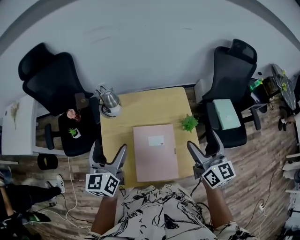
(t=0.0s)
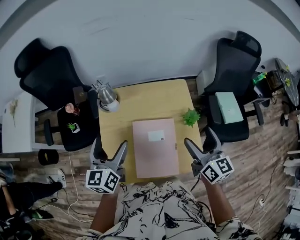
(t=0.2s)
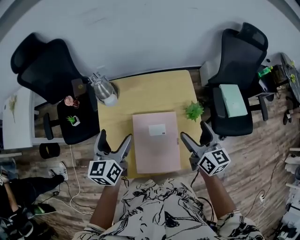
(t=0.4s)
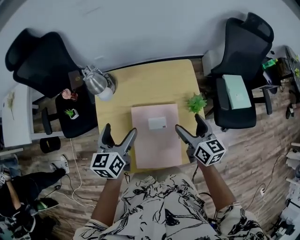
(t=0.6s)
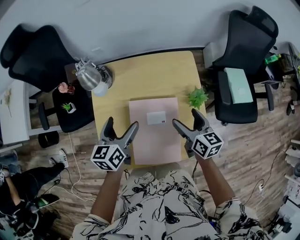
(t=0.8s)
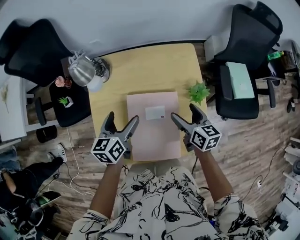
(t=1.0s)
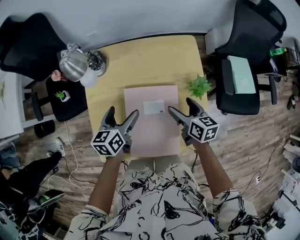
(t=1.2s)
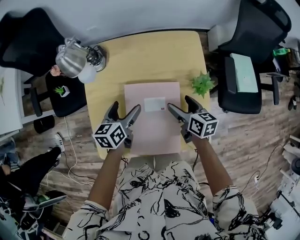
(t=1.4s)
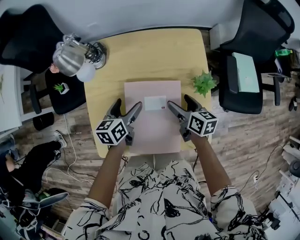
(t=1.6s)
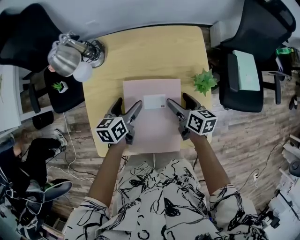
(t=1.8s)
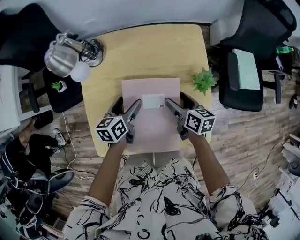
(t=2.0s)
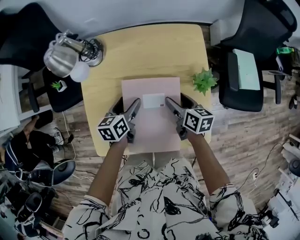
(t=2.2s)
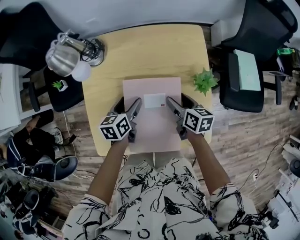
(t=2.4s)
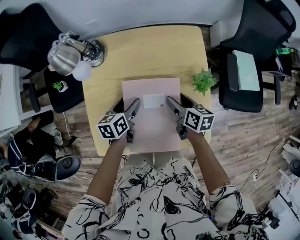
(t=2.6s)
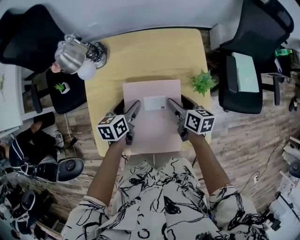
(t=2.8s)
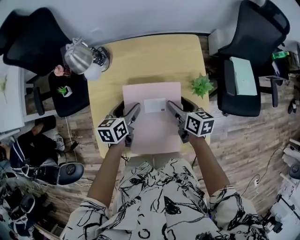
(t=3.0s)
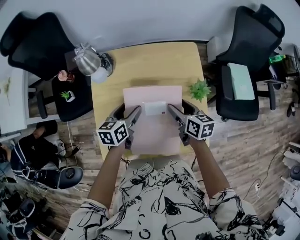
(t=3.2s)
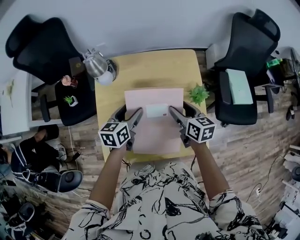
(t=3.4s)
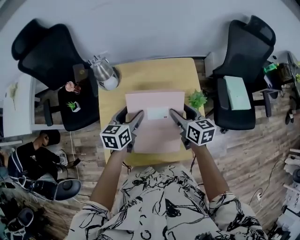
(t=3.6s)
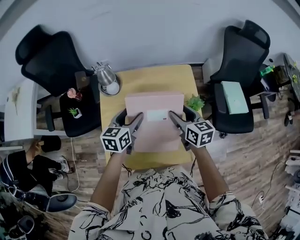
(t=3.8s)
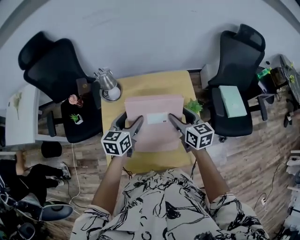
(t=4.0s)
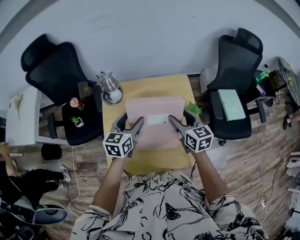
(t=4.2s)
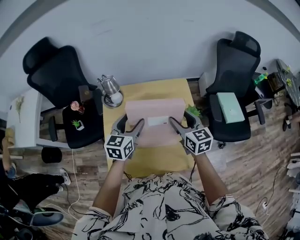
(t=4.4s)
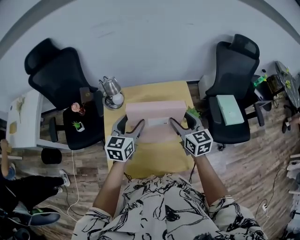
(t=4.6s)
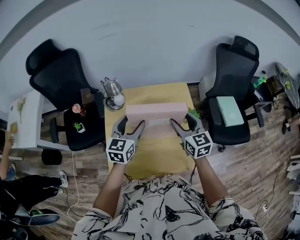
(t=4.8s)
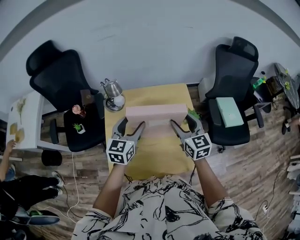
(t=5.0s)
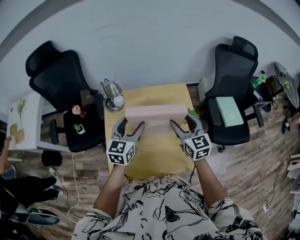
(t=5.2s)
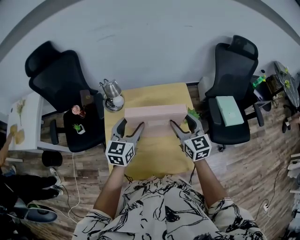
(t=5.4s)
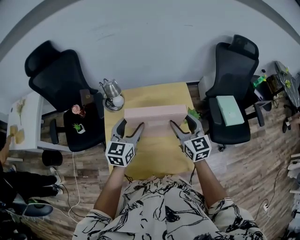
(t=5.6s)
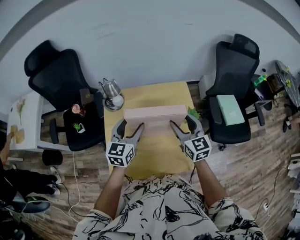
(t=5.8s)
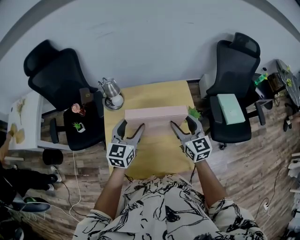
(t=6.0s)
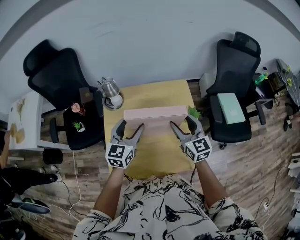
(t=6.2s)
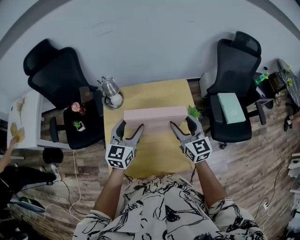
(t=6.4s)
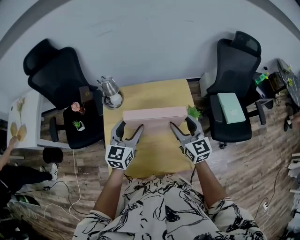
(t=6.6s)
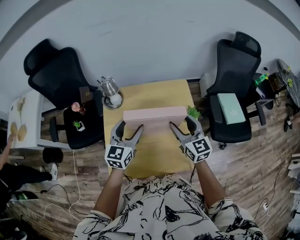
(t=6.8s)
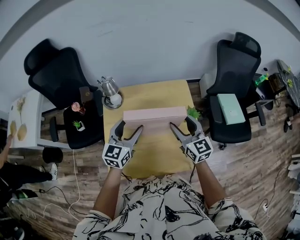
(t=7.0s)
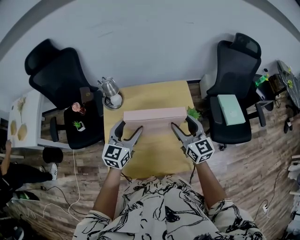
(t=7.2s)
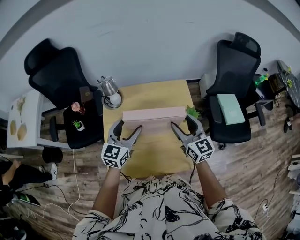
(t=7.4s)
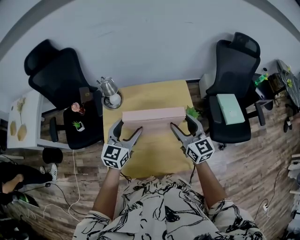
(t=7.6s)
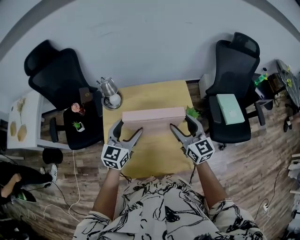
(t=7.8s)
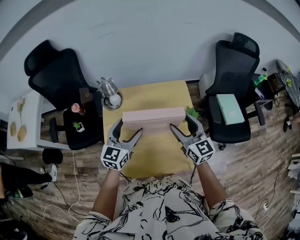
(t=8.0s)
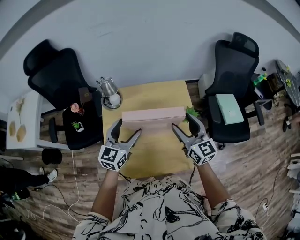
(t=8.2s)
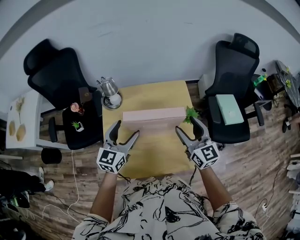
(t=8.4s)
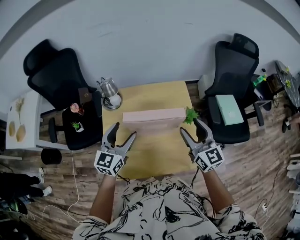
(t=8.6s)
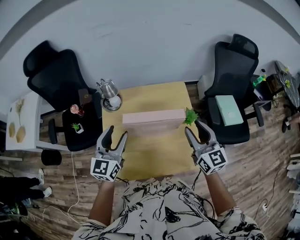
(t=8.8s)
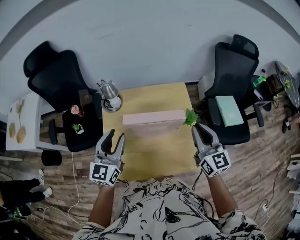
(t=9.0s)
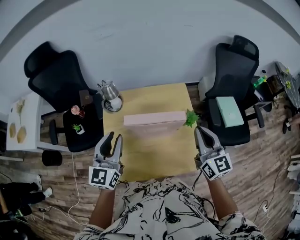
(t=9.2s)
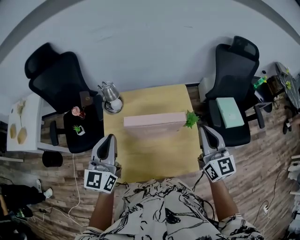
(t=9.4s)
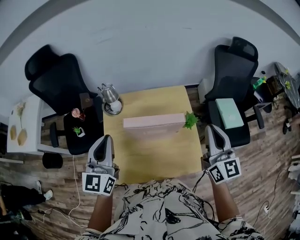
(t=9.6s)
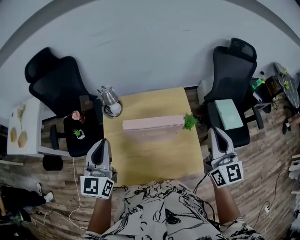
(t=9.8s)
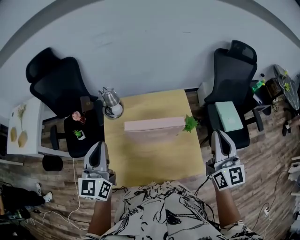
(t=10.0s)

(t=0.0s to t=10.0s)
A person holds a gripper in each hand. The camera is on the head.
t=0.0s - t=1.4s: Both grippers travel together downward, some 30 cm. The left gripper swivels approximately 30 degrees. Meanwhile the right gripper turns by roughly 40 degrees.
t=1.4s - t=2.8s: The right gripper closes.
t=2.8s - t=4.2s: The grippers both shift upward by some 20 cm. The right gripper turns by some 30 degrees; the left gripper turns by about 30 degrees.
t=4.2s - t=7.2s: There are only small adjustments of the grippers.
t=7.2s - t=8.6s: The right gripper ends up approximately 5 cm from where it was.
t=8.6s - t=10.0s: The right gripper travels upward and to the right by approximately 15 cm, and closes up; the left gripper moves upward and to the left, some 15 cm, and closes its fingers.

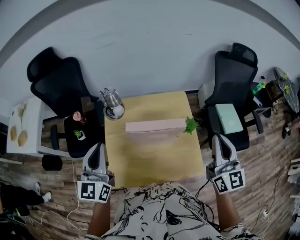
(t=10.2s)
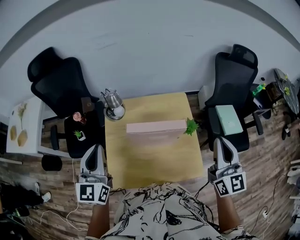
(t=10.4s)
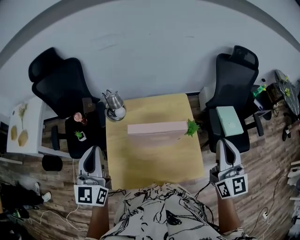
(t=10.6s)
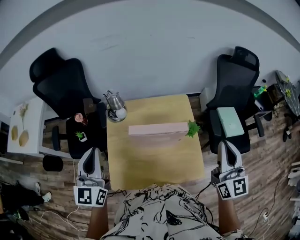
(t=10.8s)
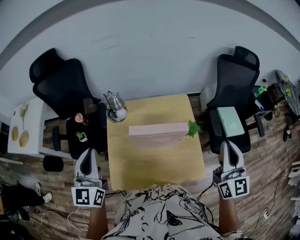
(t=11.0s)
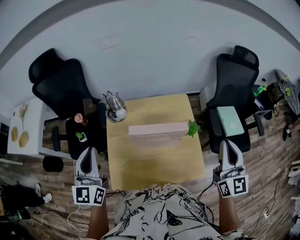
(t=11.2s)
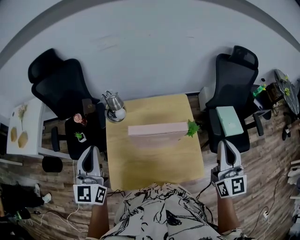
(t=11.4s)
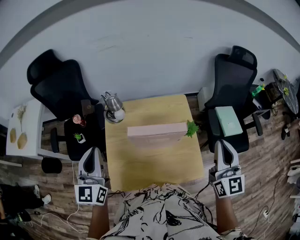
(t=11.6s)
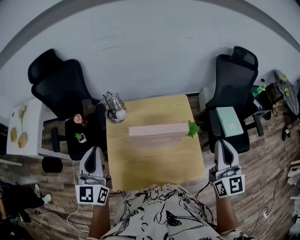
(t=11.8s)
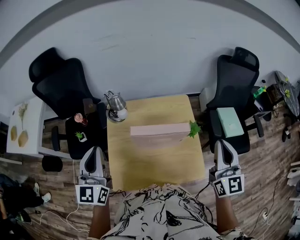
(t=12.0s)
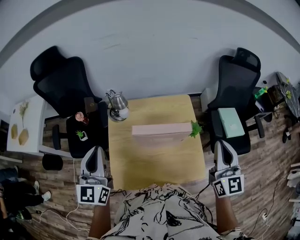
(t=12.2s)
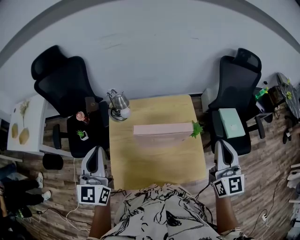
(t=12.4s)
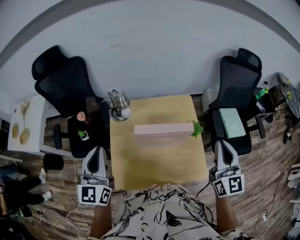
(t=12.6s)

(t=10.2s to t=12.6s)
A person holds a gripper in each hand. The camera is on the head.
t=10.2s - t=12.6s: The grippers stay close to where they were, moving slightly.

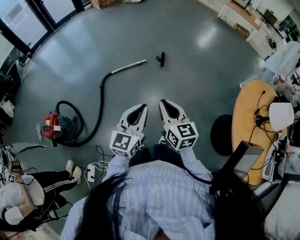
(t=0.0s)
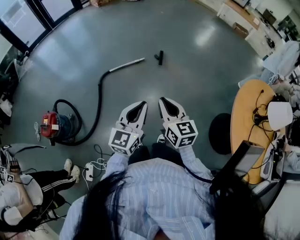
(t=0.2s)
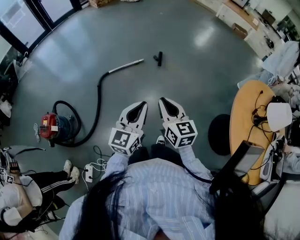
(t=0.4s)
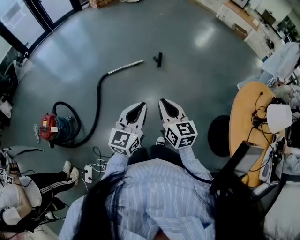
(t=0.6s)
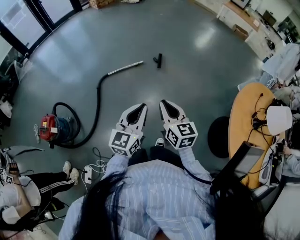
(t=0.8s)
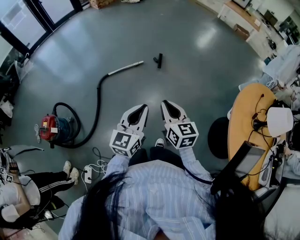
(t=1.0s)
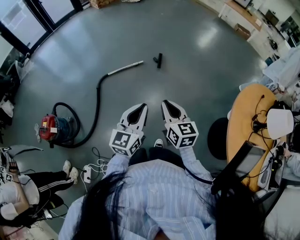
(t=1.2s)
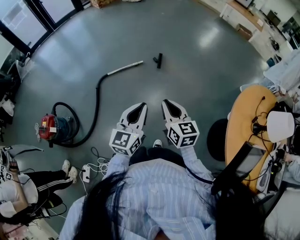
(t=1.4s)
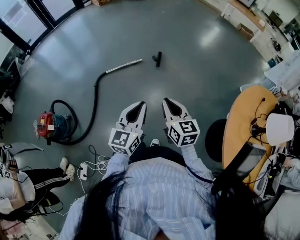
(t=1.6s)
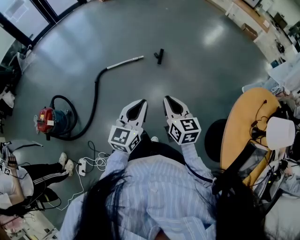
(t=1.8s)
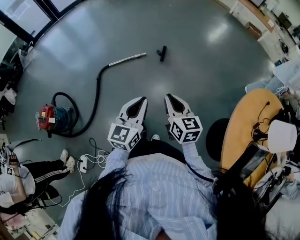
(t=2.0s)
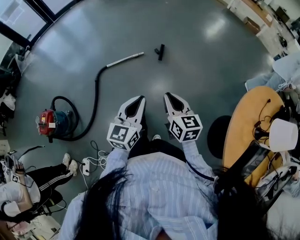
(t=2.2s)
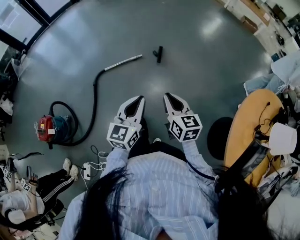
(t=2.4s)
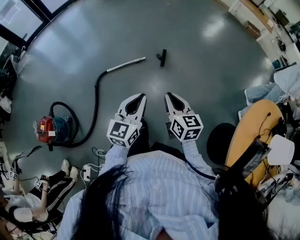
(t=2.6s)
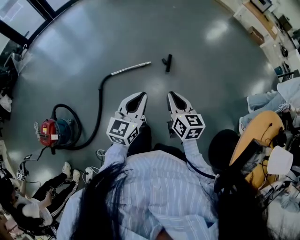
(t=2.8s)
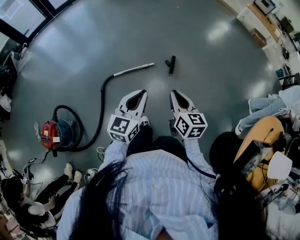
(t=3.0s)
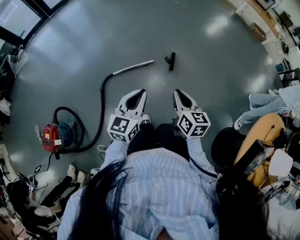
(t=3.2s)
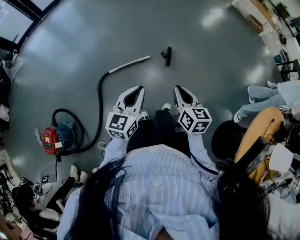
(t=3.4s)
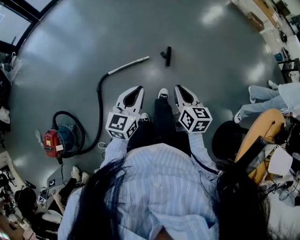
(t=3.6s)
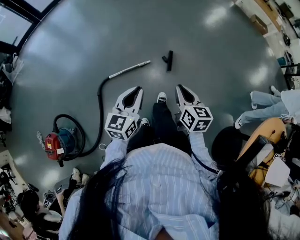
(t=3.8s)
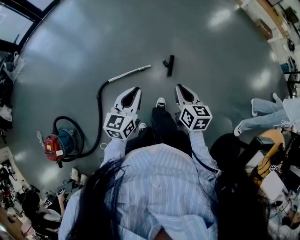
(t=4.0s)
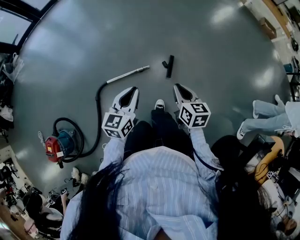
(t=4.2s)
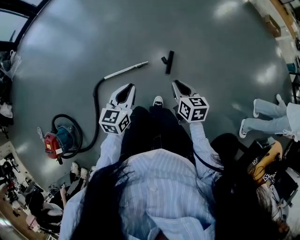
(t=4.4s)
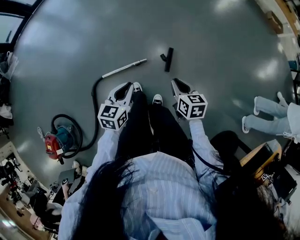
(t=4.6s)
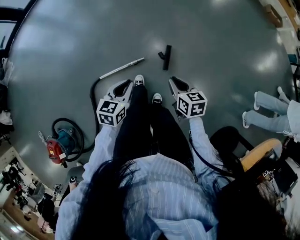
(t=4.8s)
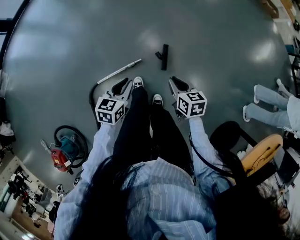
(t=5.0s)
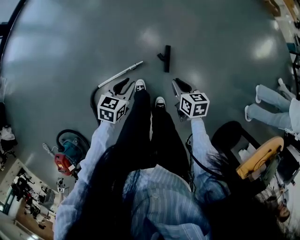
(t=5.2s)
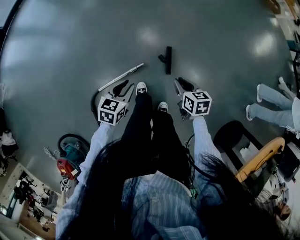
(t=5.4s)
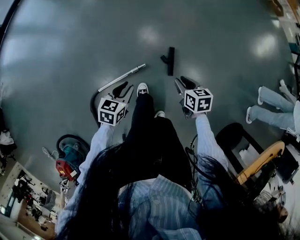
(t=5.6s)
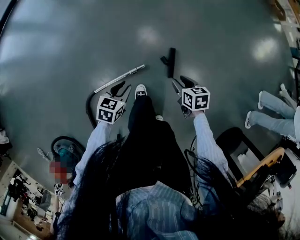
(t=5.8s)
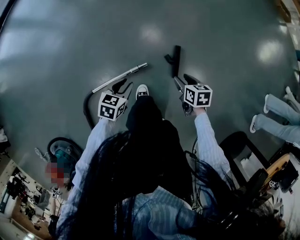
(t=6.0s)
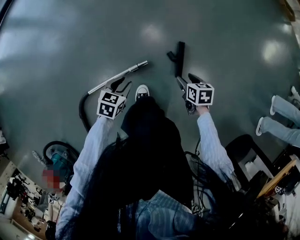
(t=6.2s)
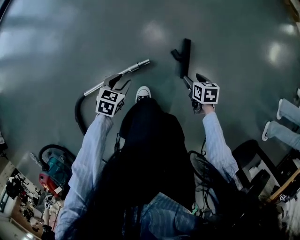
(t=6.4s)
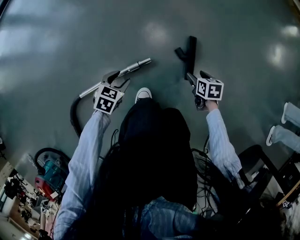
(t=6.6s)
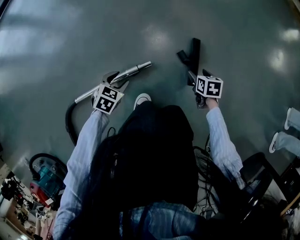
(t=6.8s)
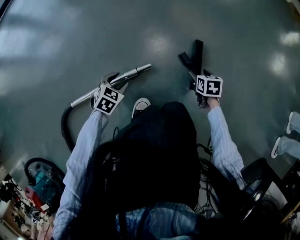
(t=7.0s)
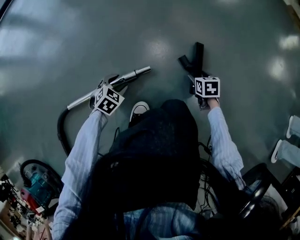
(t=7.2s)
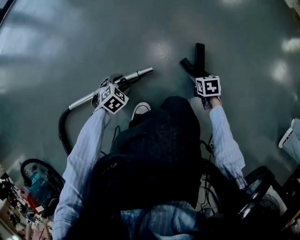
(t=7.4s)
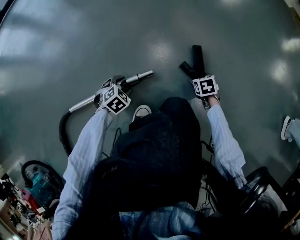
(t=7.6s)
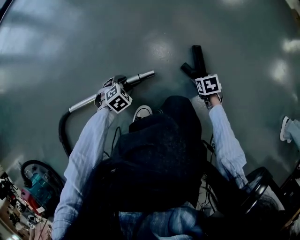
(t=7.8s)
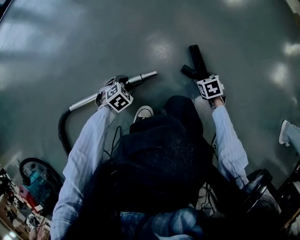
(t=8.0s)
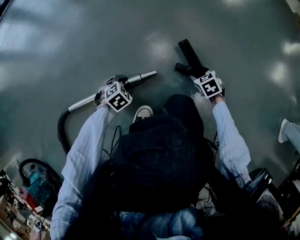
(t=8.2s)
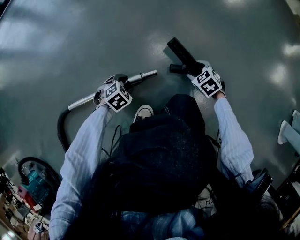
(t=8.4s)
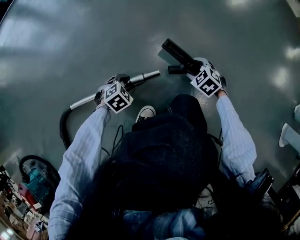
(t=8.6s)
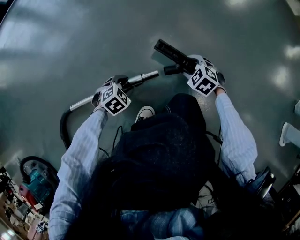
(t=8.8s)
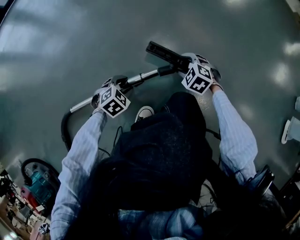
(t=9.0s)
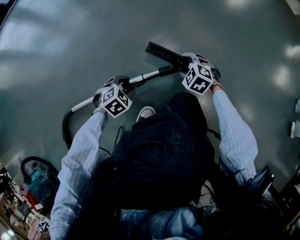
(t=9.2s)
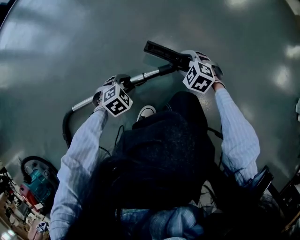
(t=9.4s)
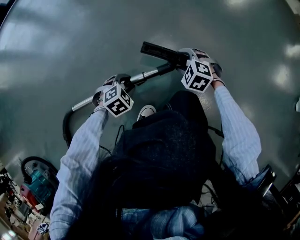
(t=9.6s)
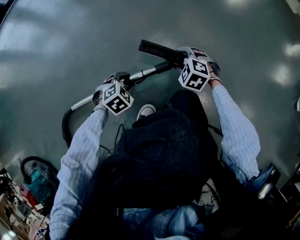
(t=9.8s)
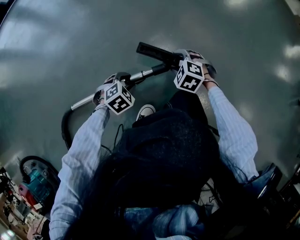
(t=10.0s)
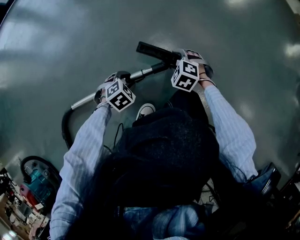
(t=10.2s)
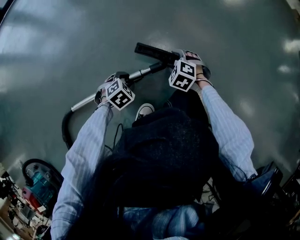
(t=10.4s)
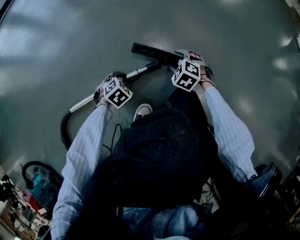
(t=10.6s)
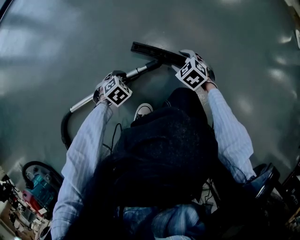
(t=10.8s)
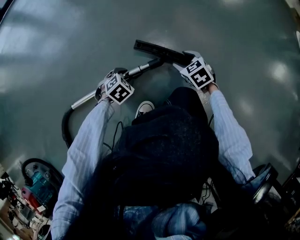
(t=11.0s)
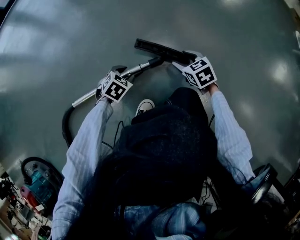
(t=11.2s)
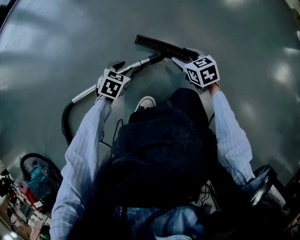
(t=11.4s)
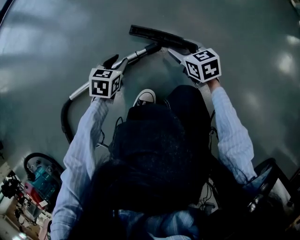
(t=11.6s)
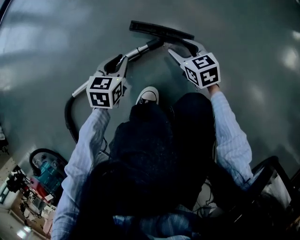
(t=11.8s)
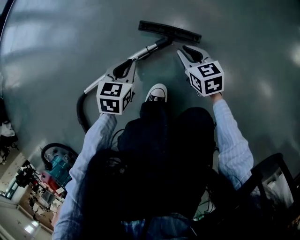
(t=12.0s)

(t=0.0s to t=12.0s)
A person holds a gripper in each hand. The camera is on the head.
t=0.0s - t=1.6s: The two grippers go some 15 cm to the right and forward.
t=1.6s - t=3.0s: Both grippers move forward and to the left, some 30 cm.
t=3.0s - t=4.4s: The grippers both shift forward by approximately 35 cm.
t=4.4s - t=6.0s: Both grippers move downward and forward, approximately 40 cm. The right gripper changes its angle by some 20 degrees, and opens its fingers. Meanwhile the left gripper turns by some 30 degrees, and opens its fingers.
t=6.0s - t=7.6s: Both grippers move downward, about 40 cm. The right gripper turns by approximately 30 degrees. Meanwhile the left gripper turns by about 40 degrees, and opens.
t=7.6s - t=9.0s: The right gripper moves about 15 cm, and rolls counterclockwise, seen from behind, by about 50 degrees.
t=9.0s - t=10.4s: The grippers move only a little.
t=10.4s - t=12.0s: The right gripper goes approximately 10 cm upward and backward, twists some 60 degrees clockwise, seen from behind, and closes, while the left gripper heads upward, covering approximately 15 cm, swivels roughly 40 degrees, and closes its fingers.
